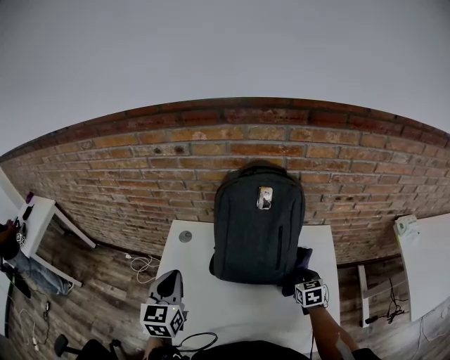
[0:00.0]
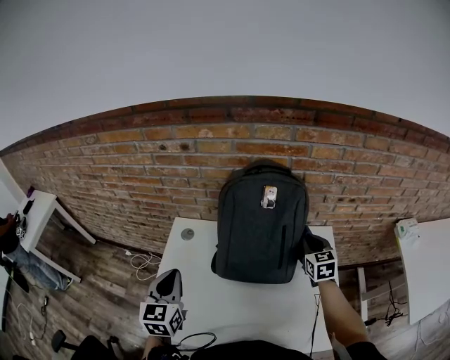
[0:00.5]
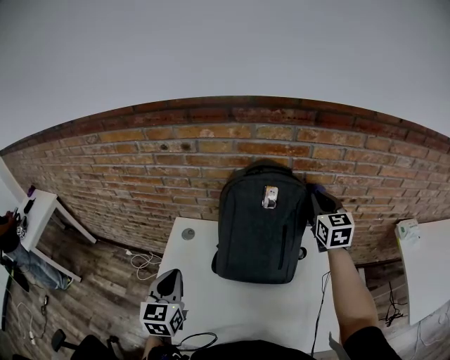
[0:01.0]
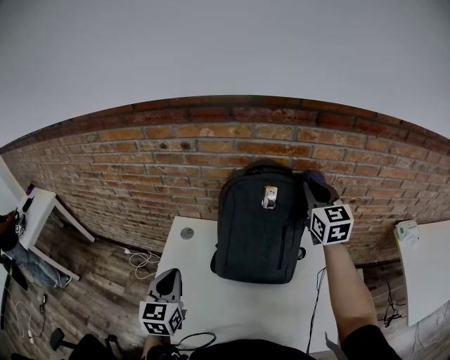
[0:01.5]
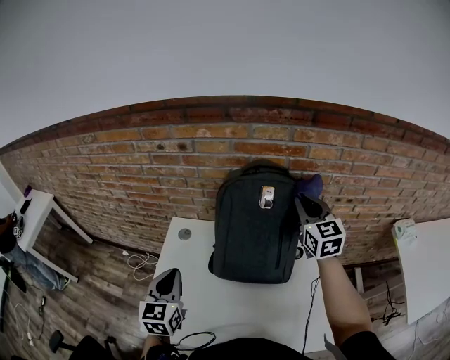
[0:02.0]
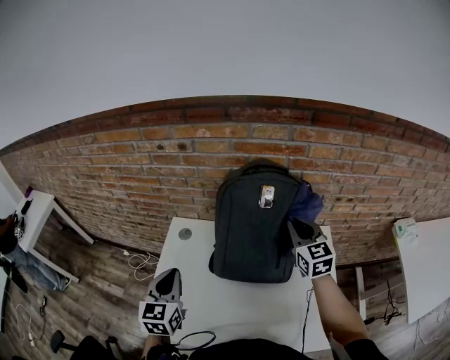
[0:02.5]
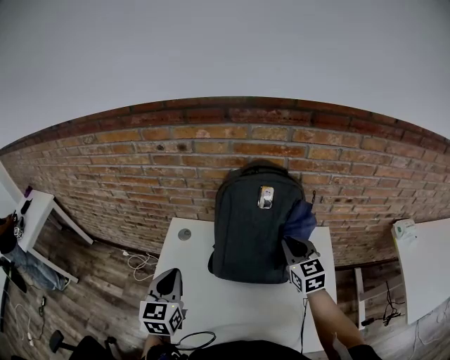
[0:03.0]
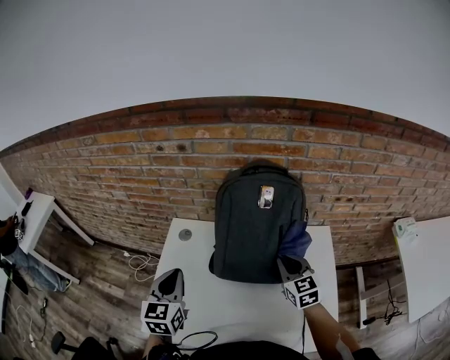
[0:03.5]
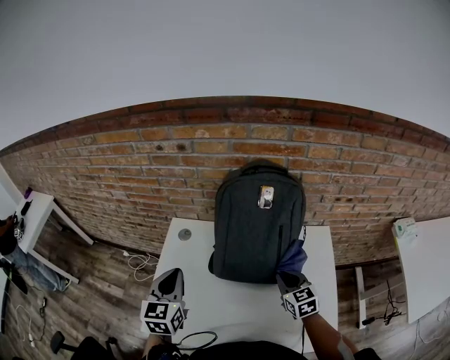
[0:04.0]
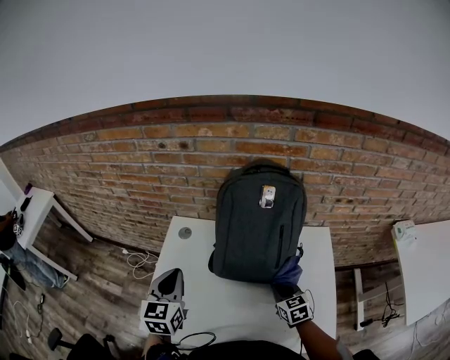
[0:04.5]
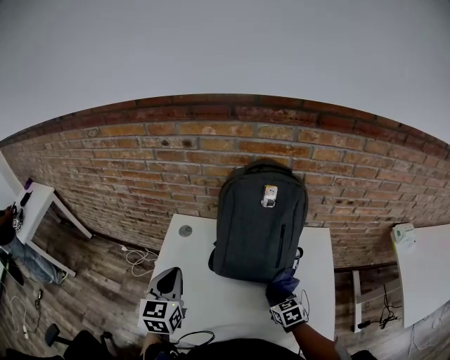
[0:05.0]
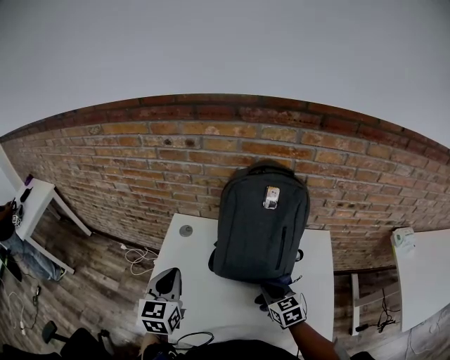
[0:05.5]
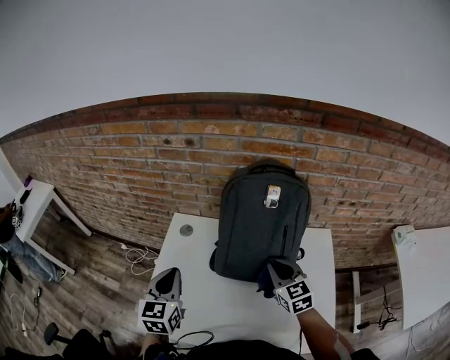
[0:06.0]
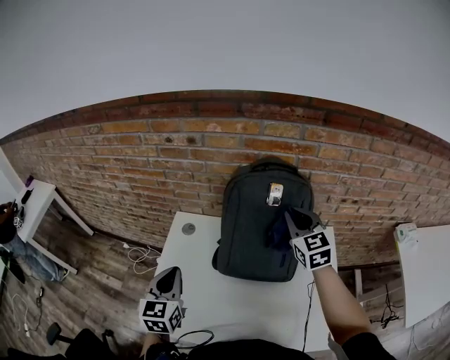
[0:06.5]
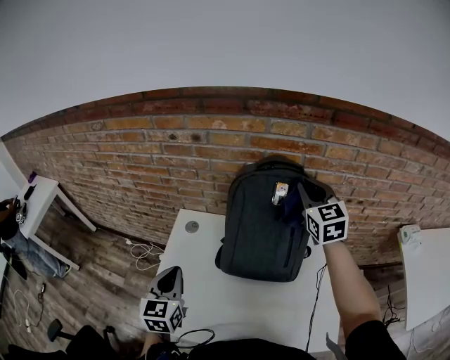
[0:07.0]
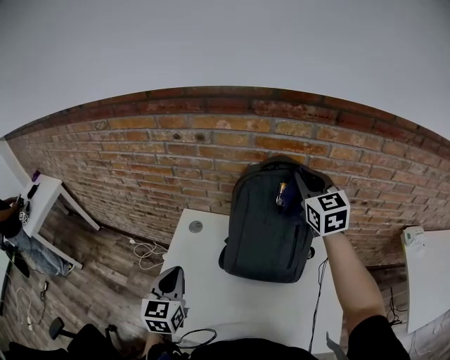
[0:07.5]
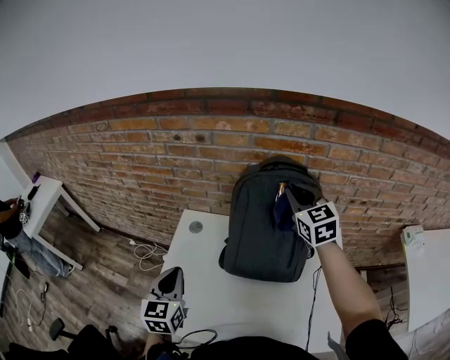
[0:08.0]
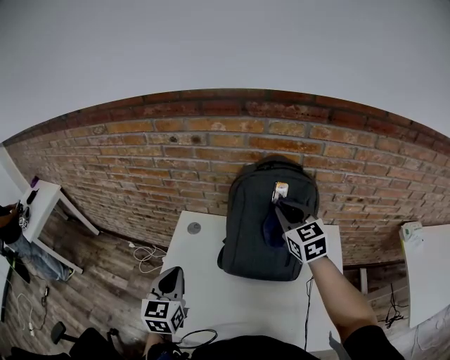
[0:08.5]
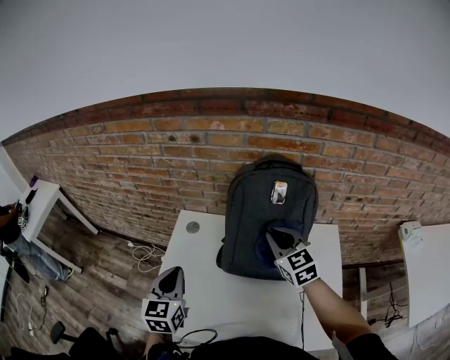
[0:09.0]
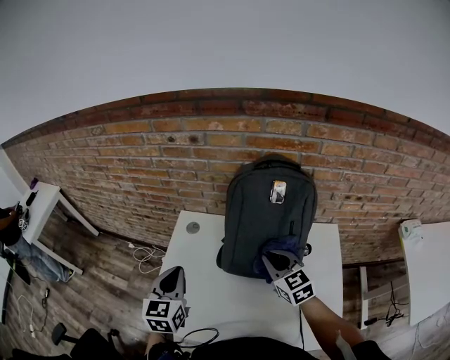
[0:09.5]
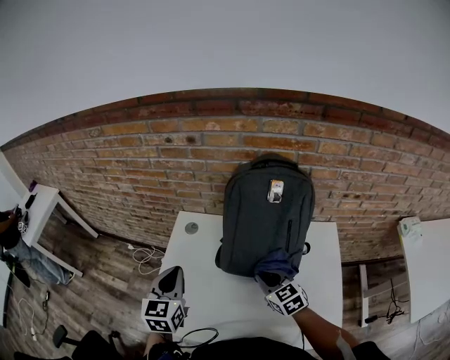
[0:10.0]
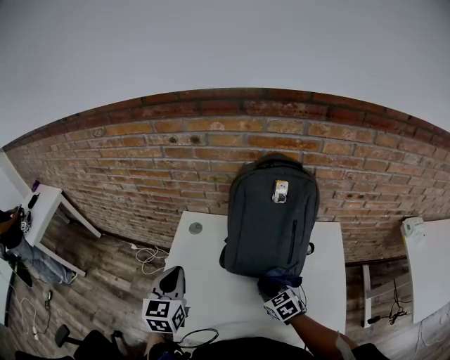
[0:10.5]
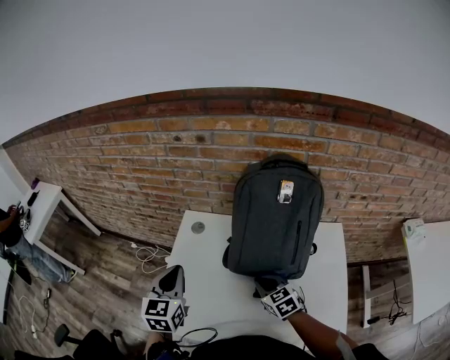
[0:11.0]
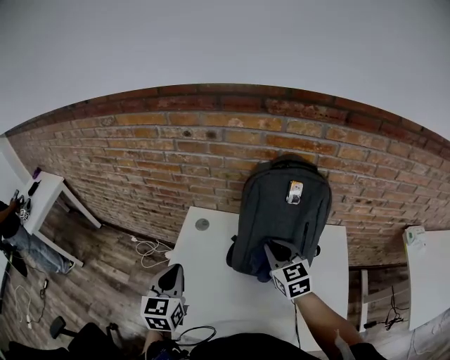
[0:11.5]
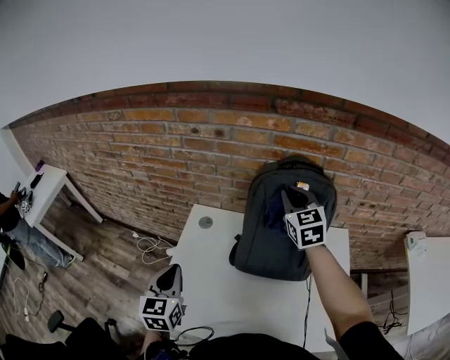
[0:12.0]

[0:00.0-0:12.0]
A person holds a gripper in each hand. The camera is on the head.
0:00.0 to 0:02.0: The right gripper is displaced upward and forward by roughly 35 cm, and points its fingers roughly 30 degrees further upward.
0:02.0 to 0:04.0: The right gripper travels downward and backward by roughly 25 cm, and rotates roughly 20 degrees.
0:04.0 to 0:06.0: The right gripper shifts about 5 cm upward.
0:06.0 to 0:08.0: The right gripper is displaced upward and forward by about 25 cm.
0:08.0 to 0:10.0: The right gripper heads downward, backward and to the left, covering roughly 30 cm, and rotates approximately 20 degrees.
0:10.0 to 0:12.0: The left gripper is displaced to the left by some 5 cm; the right gripper goes some 30 cm upward and forward, and swivels some 30 degrees.

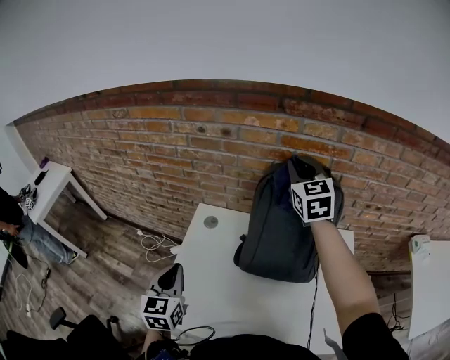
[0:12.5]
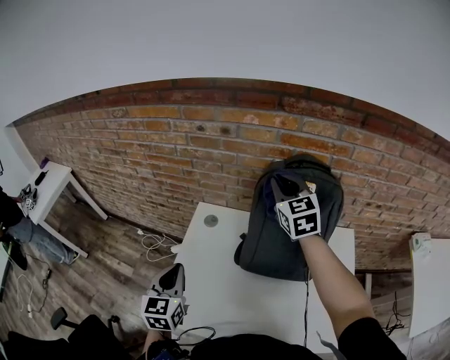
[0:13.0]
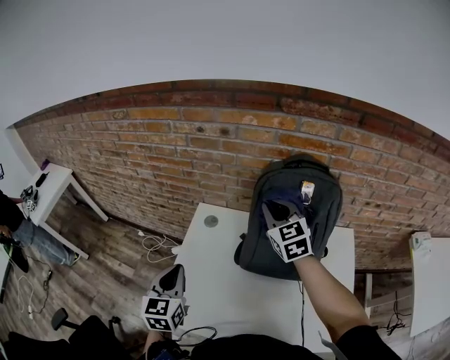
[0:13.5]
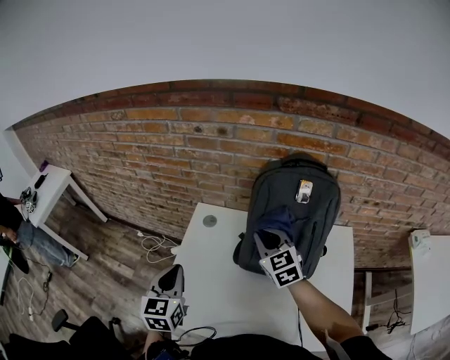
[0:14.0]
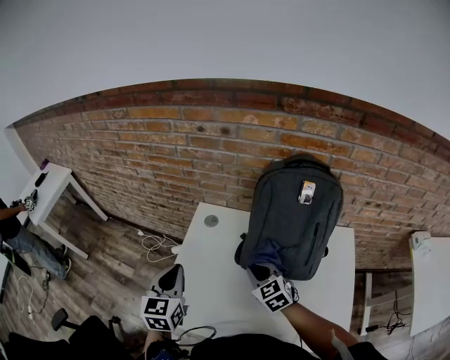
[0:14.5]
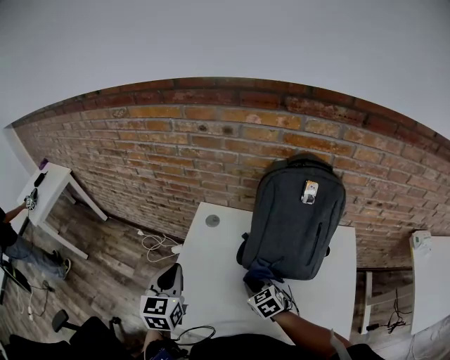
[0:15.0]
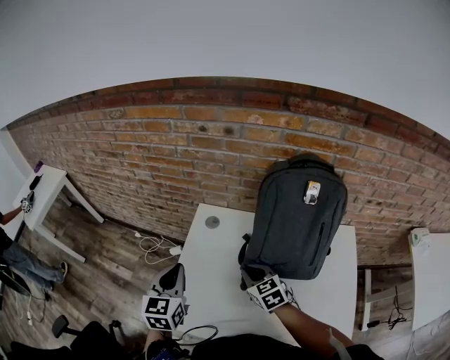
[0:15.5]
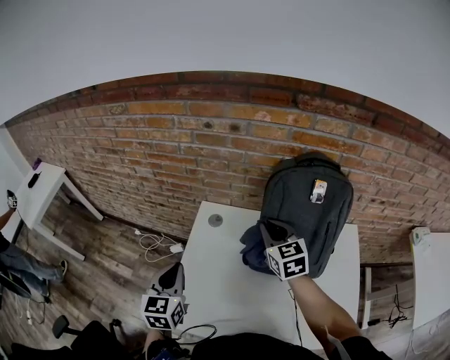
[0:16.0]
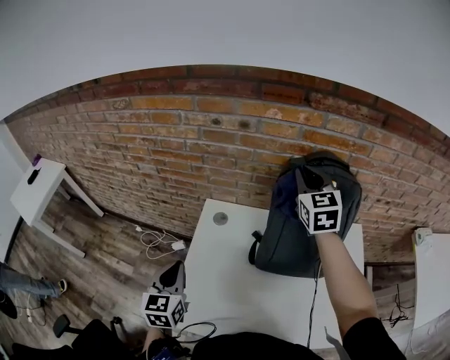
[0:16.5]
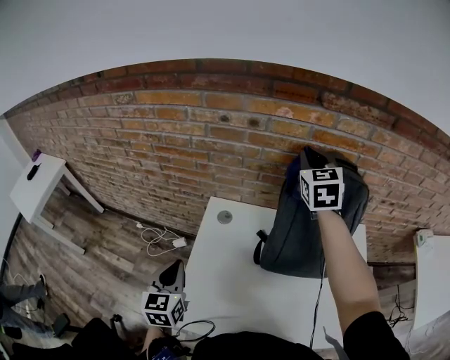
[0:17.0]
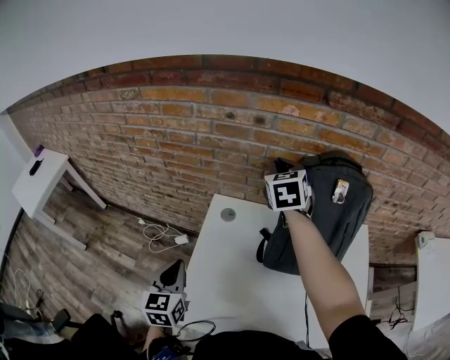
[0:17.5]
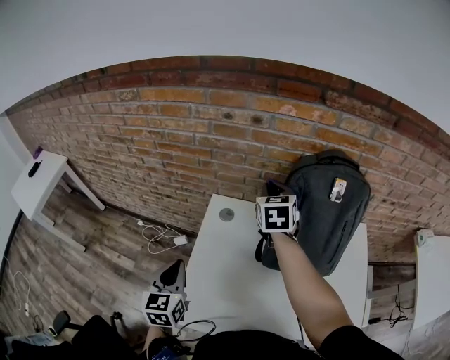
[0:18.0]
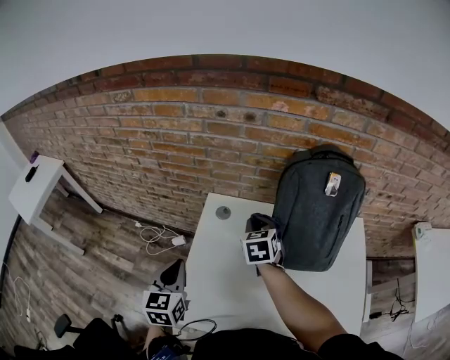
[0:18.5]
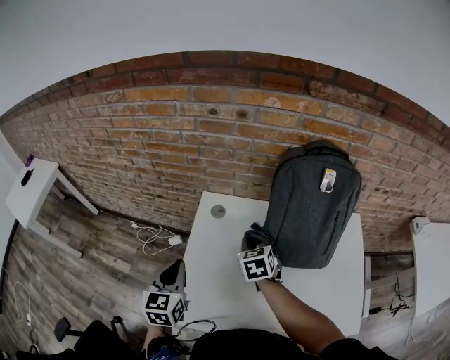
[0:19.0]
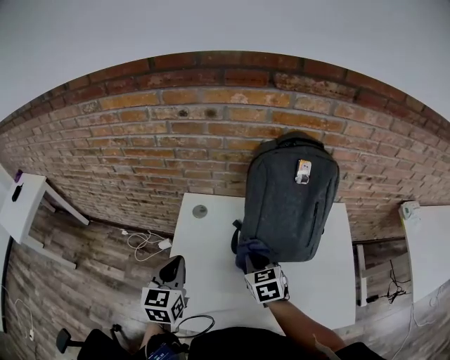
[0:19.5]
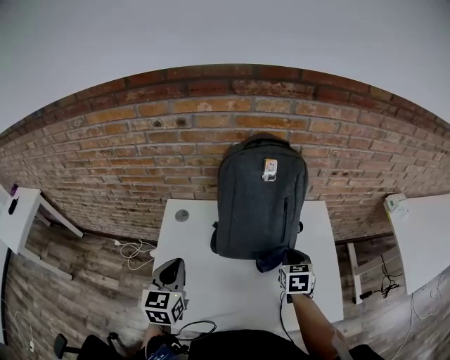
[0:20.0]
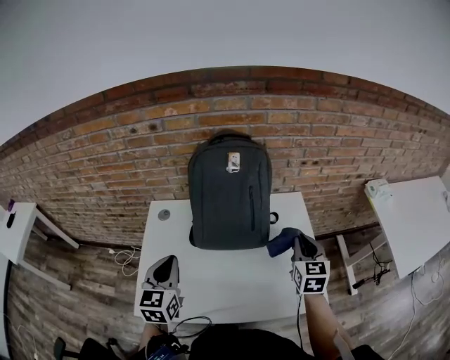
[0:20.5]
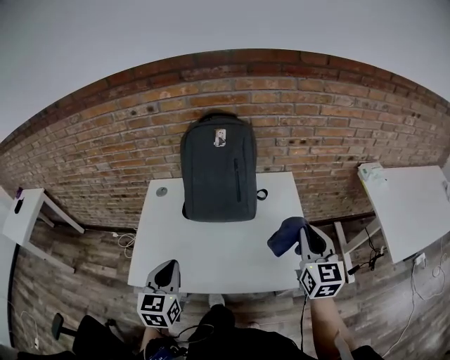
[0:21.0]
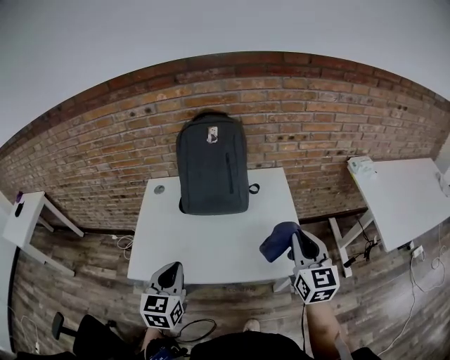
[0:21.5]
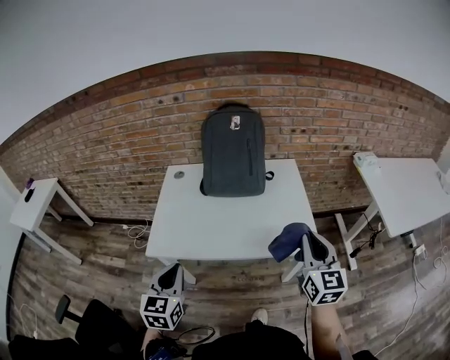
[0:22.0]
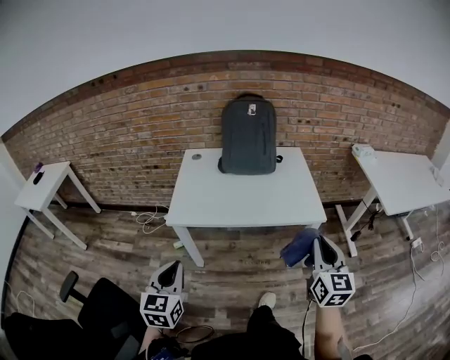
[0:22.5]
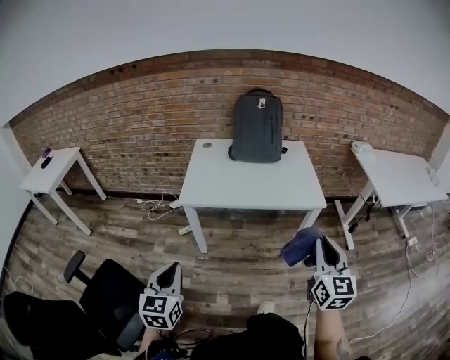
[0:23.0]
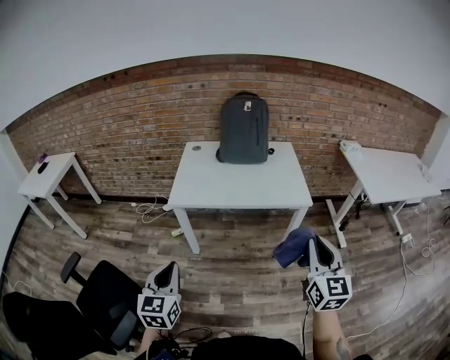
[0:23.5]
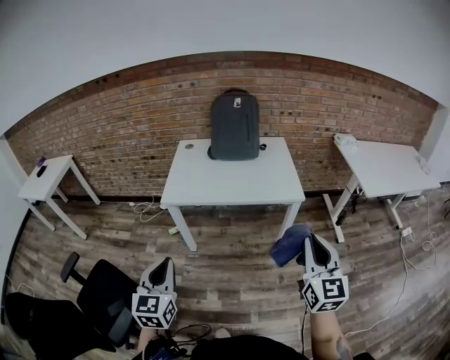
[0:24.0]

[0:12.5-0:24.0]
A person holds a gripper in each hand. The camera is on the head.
0:12.5 to 0:14.5: The right gripper moves downward, backward and to the left, some 40 cm, and swivels approximately 30 degrees.
0:14.5 to 0:16.5: The left gripper moves about 5 cm. The right gripper goes roughly 35 cm upward, forward and to the right, and turns by roughly 30 degrees.
0:16.5 to 0:18.5: The right gripper goes some 25 cm downward and to the left, and turns by approximately 30 degrees.
0:18.5 to 0:20.0: The left gripper travels to the right by about 15 cm, while the right gripper heads to the right and backward, covering roughly 30 cm.
0:20.0 to 0:22.0: The right gripper travels backward and upward by about 40 cm, and tilts its fingers about 40 degrees upward; the left gripper moves backward, roughly 30 cm.
0:22.0 to 0:24.0: The two grippers go roughly 30 cm backward.

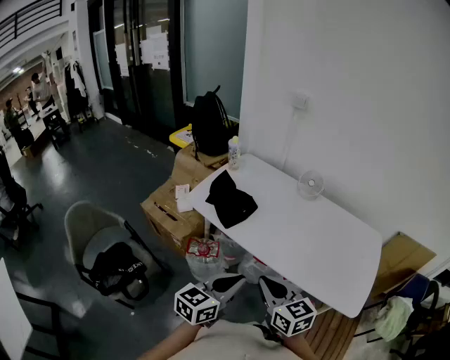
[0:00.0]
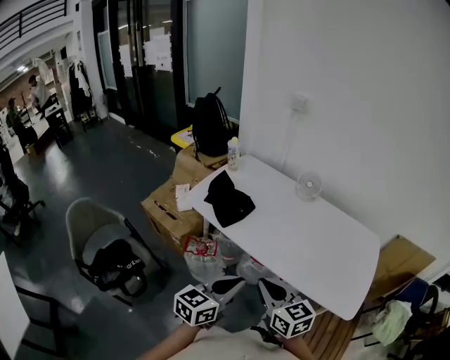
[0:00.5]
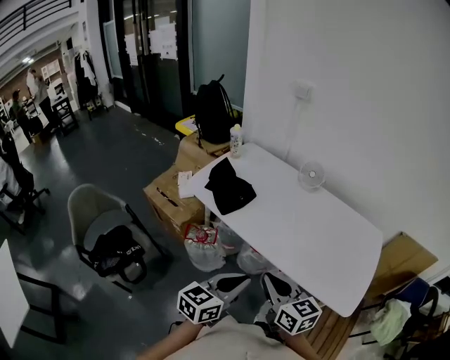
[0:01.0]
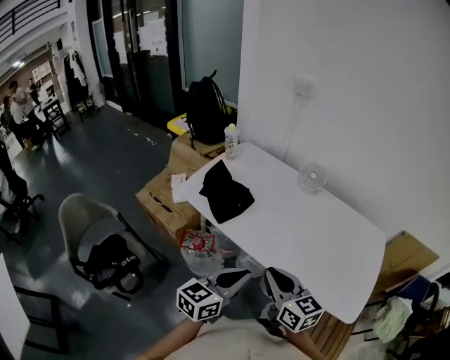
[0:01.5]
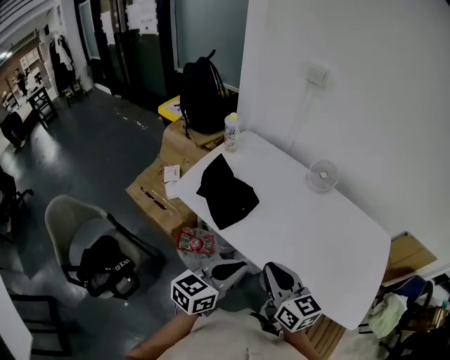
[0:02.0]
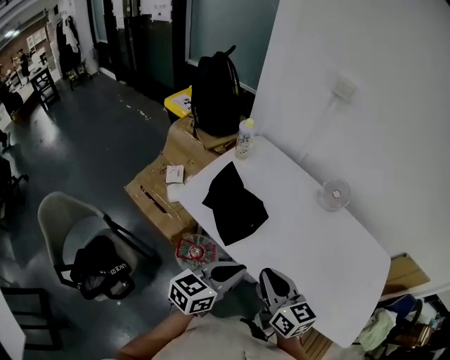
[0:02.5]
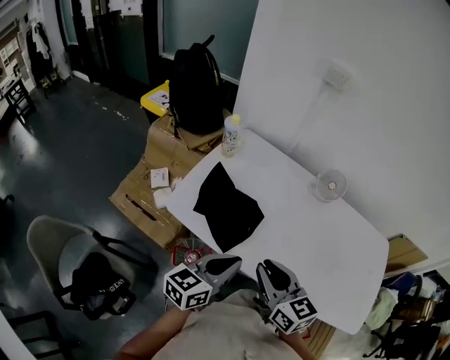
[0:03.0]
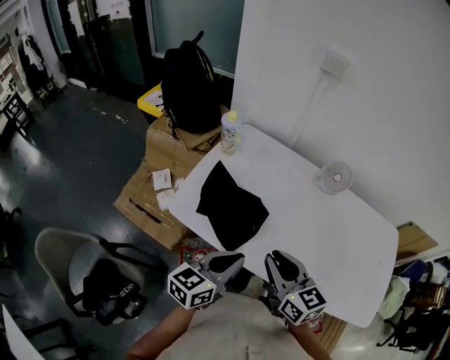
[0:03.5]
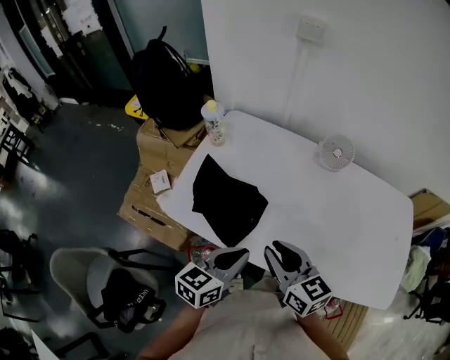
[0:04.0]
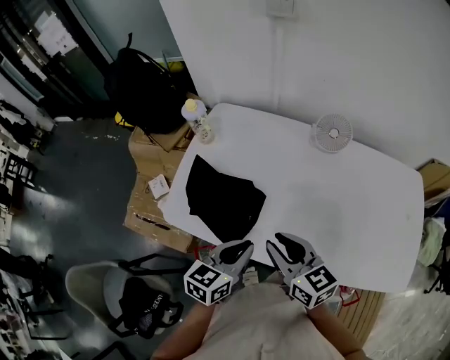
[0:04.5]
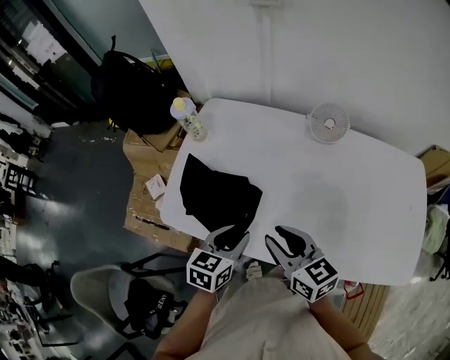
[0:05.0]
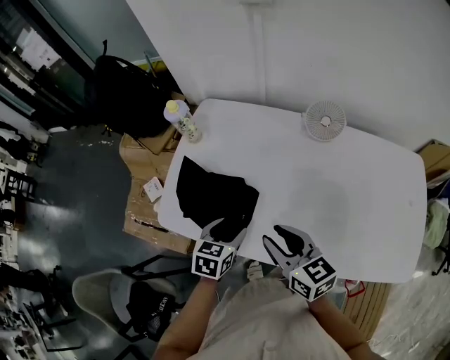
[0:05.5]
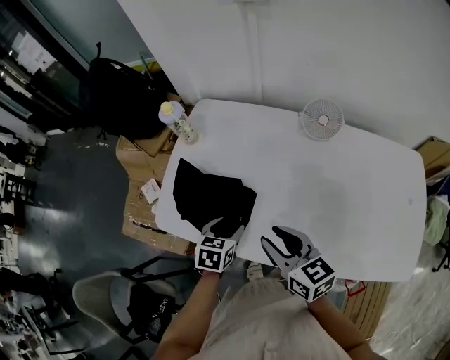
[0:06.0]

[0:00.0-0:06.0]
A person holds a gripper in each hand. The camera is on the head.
0:00.0 to 0:02.0: Both grippers travel together forward, approximately 15 cm.
0:02.0 to 0:04.0: The left gripper moves forward, to the left and downward, approximately 20 cm. Meanwhile the right gripper moves forward and to the left, some 15 cm.
0:04.0 to 0:06.0: The left gripper is displaced downward and forward by some 20 cm, tips its fingers downward by some 30 degrees, and opens, while the right gripper ends up roughly 10 cm from where it was.
